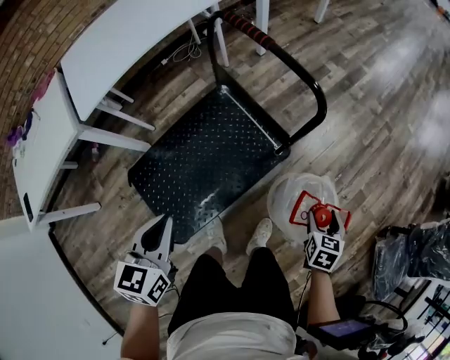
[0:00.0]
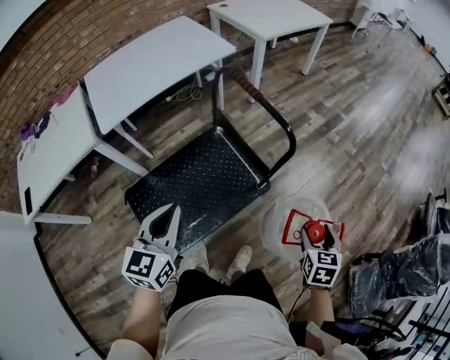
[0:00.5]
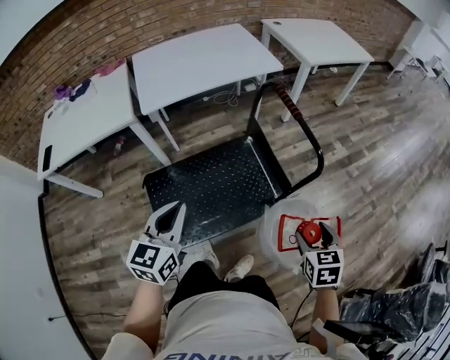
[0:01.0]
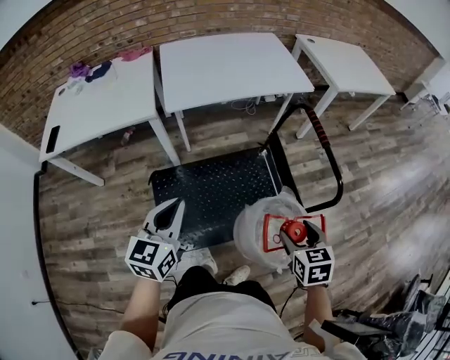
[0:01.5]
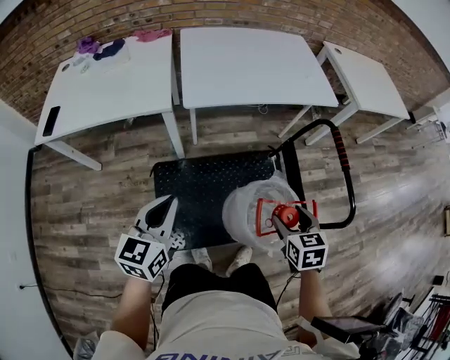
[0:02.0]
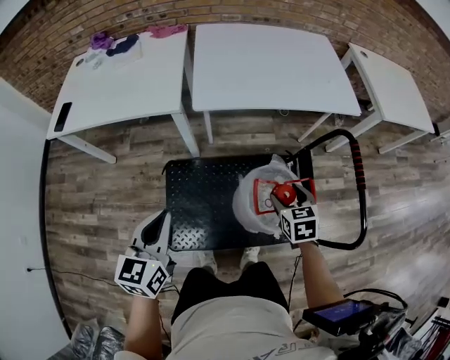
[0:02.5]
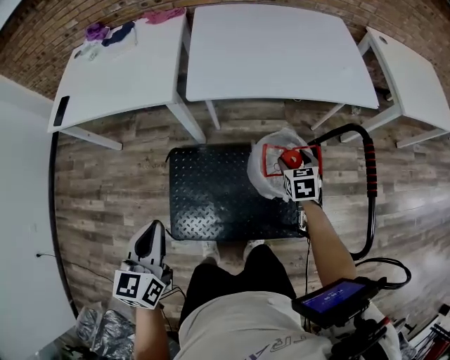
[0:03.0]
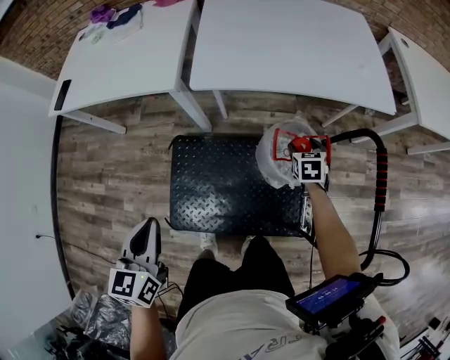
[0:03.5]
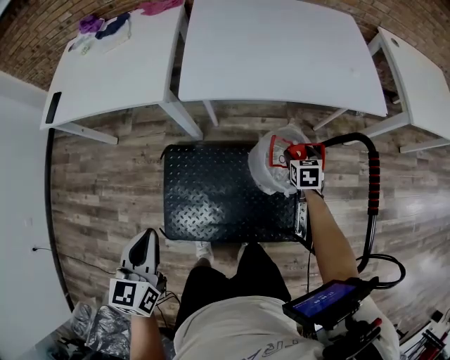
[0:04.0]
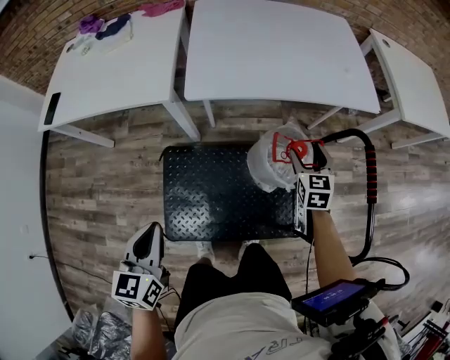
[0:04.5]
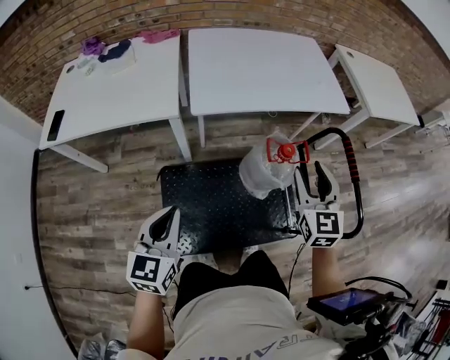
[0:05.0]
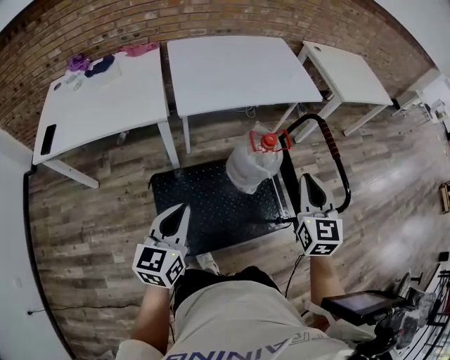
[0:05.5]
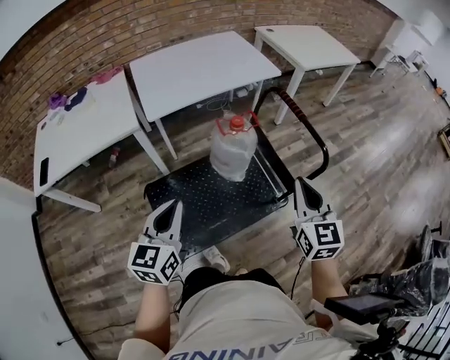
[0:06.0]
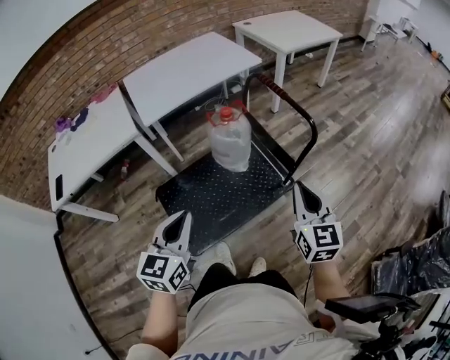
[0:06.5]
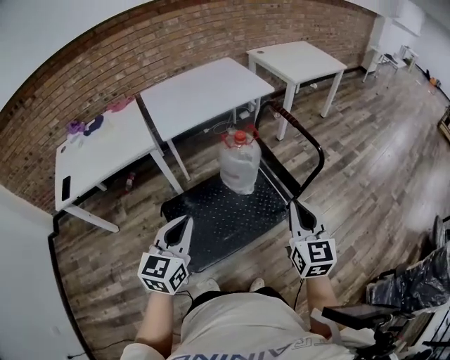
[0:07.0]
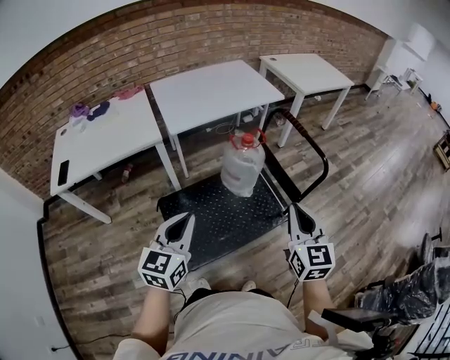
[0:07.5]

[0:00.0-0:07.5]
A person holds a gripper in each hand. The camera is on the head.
0:00.0 to 0:02.0: The right gripper changes place by roughly 40 cm, and swivels about 50 degrees; the left gripper ends up roughly 25 cm from where it was, and swivels roughly 30 degrees.
0:02.0 to 0:04.0: The right gripper is displaced forward and downward by some 40 cm, while the left gripper shifts about 5 cm downward, and turns by about 30 degrees.
0:04.0 to 0:05.5: The left gripper goes some 5 cm upward, and rotates some 30 degrees. The right gripper travels upward and backward by approximately 50 cm, points its fingers roughly 40 degrees further upward, and closes up.
0:05.5 to 0:07.5: The left gripper heads backward, upward and to the right, covering approximately 15 cm. Meanwhile the right gripper is displaced backward by roughly 25 cm.

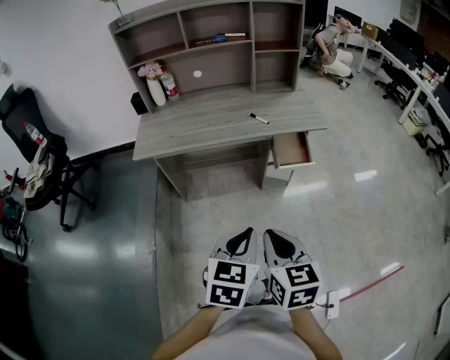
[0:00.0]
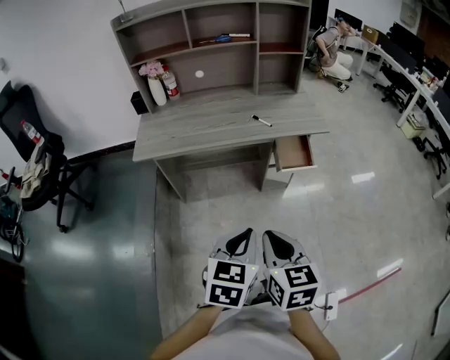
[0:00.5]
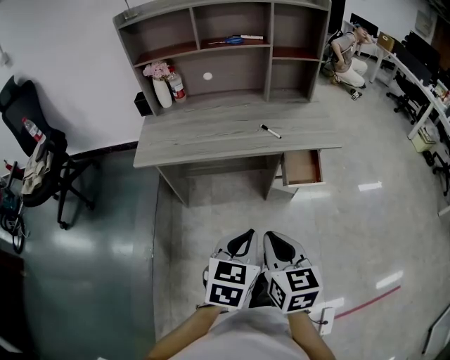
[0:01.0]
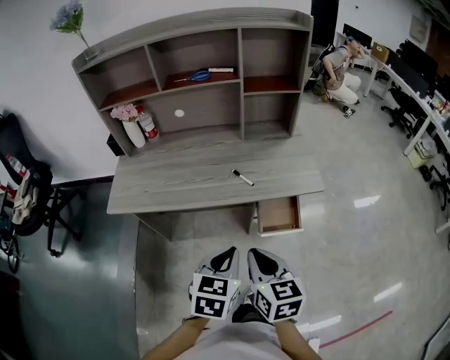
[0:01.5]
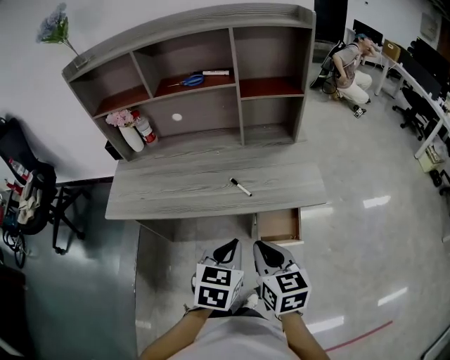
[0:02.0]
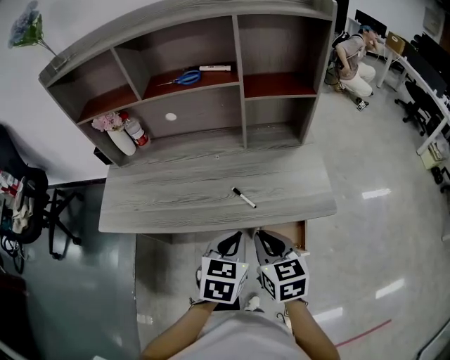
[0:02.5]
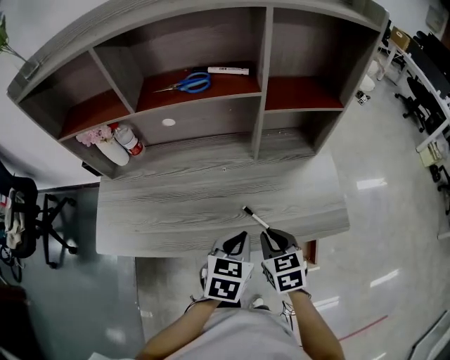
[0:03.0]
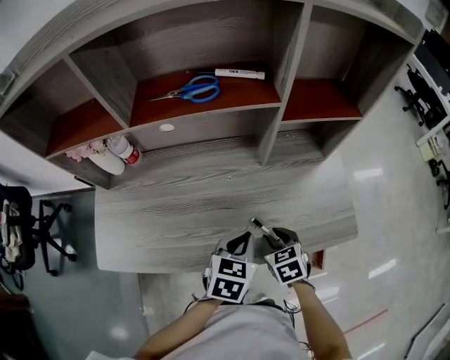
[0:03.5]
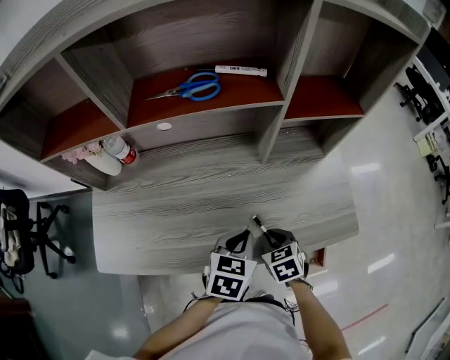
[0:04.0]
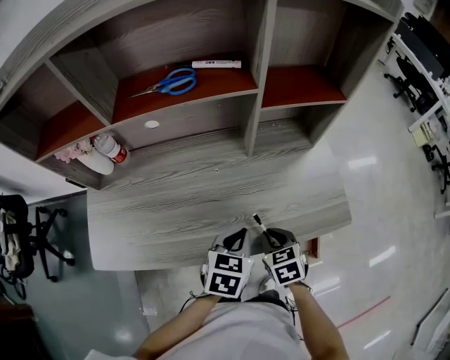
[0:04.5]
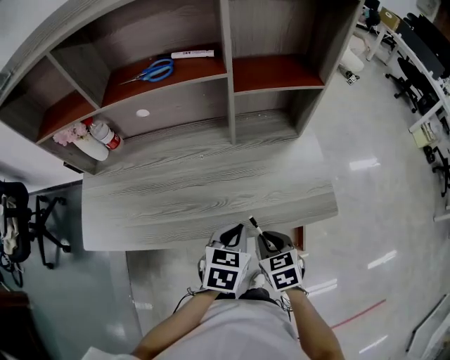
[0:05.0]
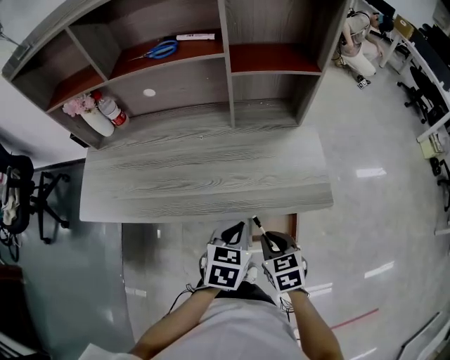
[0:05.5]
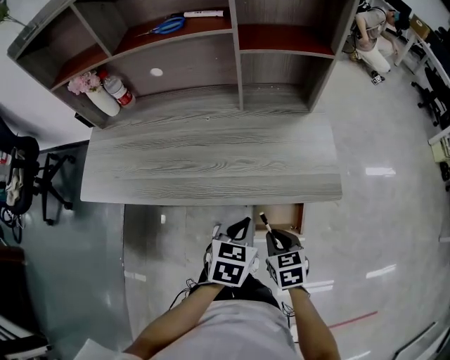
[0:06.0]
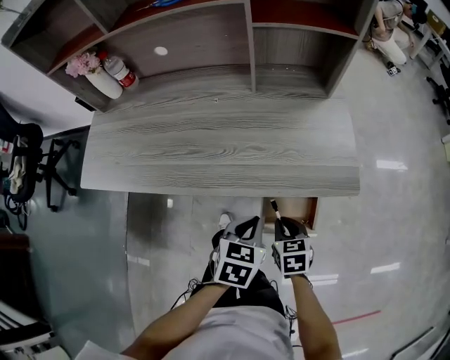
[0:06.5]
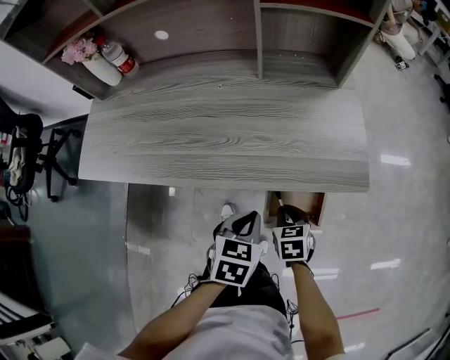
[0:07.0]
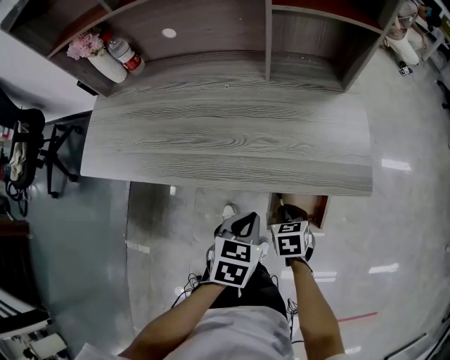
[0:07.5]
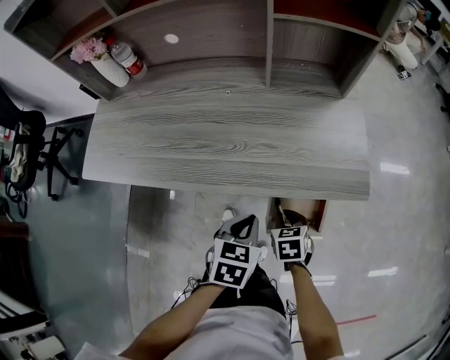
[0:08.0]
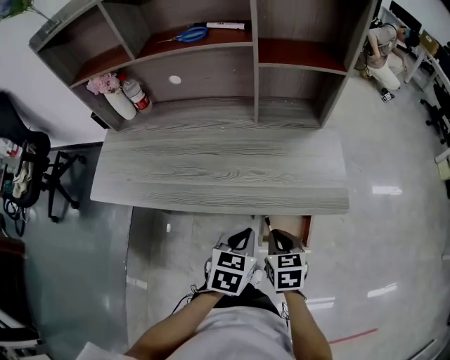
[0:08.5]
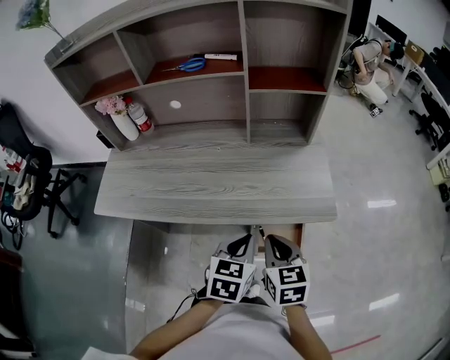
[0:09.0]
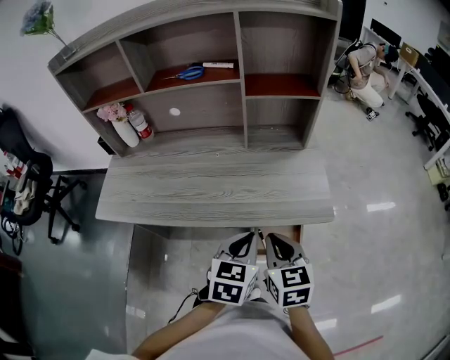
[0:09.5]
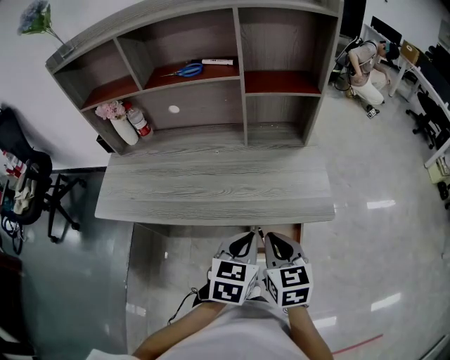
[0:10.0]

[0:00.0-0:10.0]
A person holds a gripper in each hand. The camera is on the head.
0:00.0 to 0:02.0: The two grippers go roughly 35 cm forward.
0:02.0 to 0:04.0: The right gripper heads forward and downward, covering some 30 cm, and tilts its fingers some 30 degrees downward. Meanwhile the left gripper is displaced forward by approximately 25 cm.
0:04.0 to 0:06.0: Both grippers travel together backward and to the right, some 20 cm.
0:06.0 to 0:08.0: The right gripper goes approximately 10 cm downward, while the left gripper shifts about 5 cm downward.
0:08.0 to 0:10.0: The left gripper heads upward, covering approximately 15 cm, while the right gripper goes approximately 25 cm upward, and tips its fingers upward by about 30 degrees.

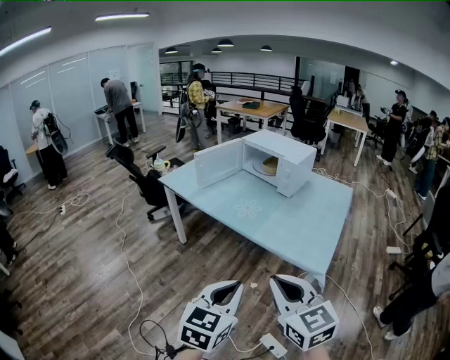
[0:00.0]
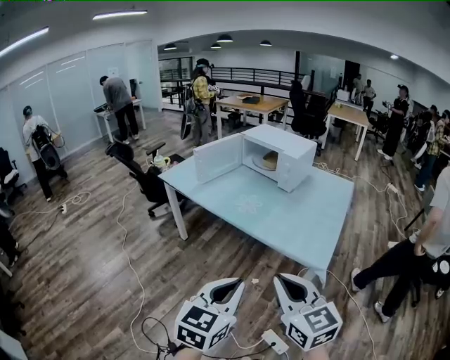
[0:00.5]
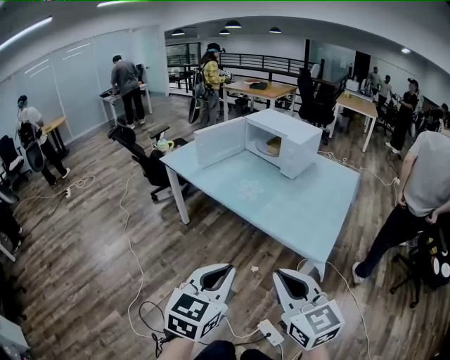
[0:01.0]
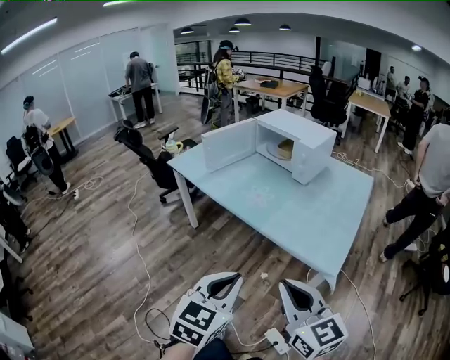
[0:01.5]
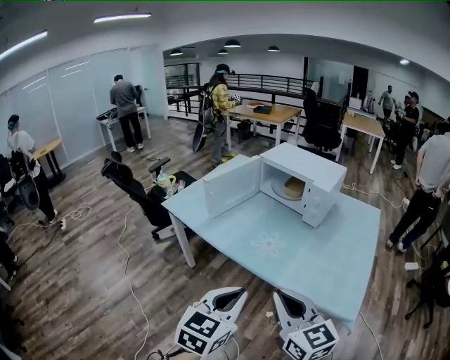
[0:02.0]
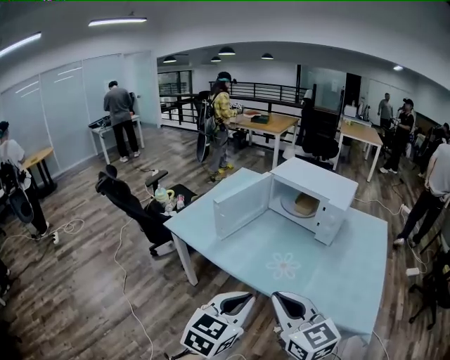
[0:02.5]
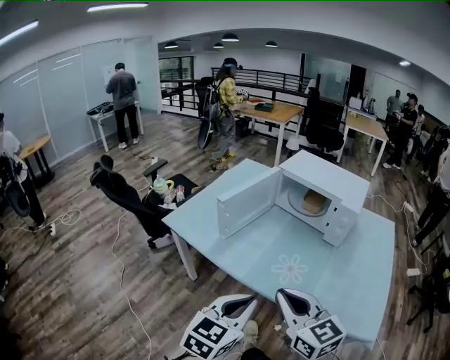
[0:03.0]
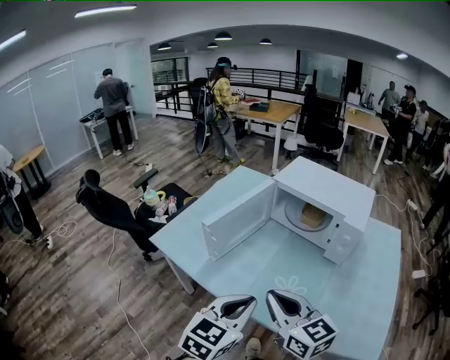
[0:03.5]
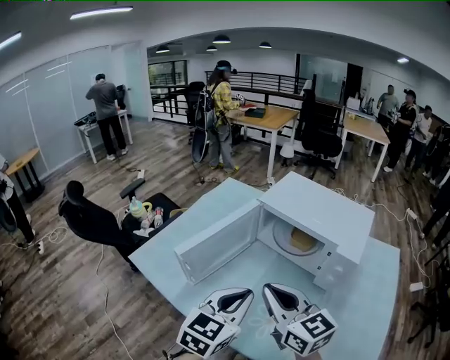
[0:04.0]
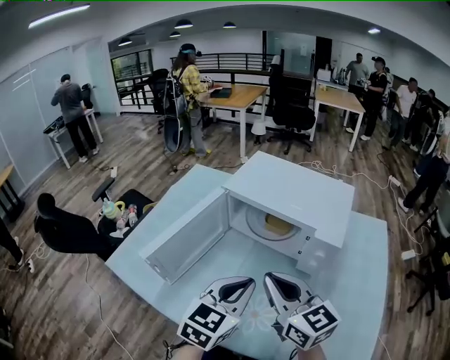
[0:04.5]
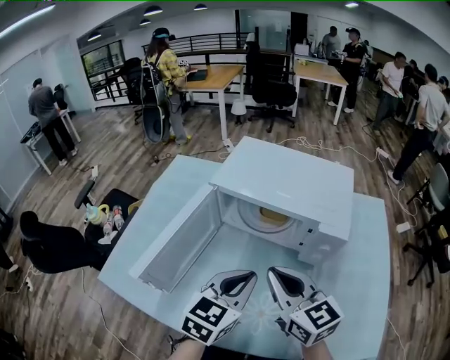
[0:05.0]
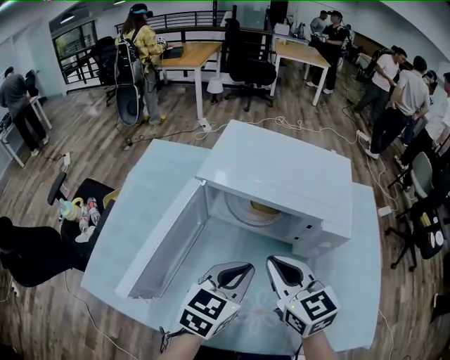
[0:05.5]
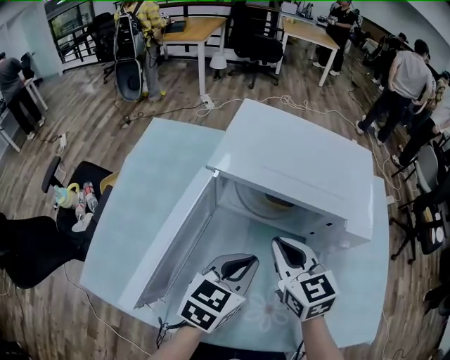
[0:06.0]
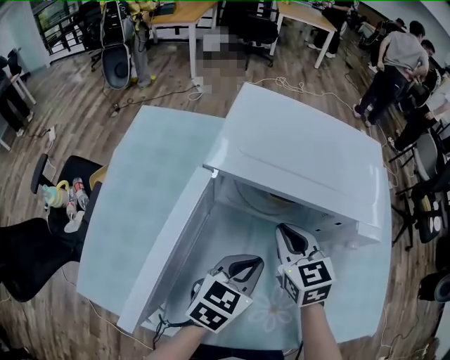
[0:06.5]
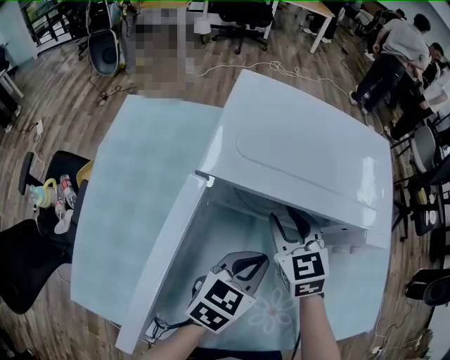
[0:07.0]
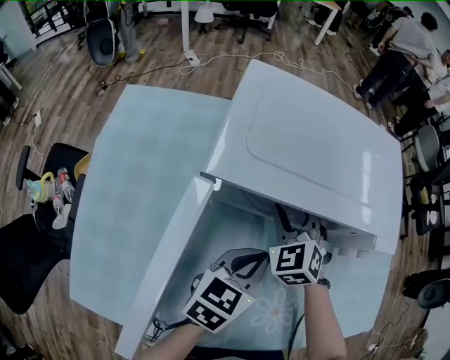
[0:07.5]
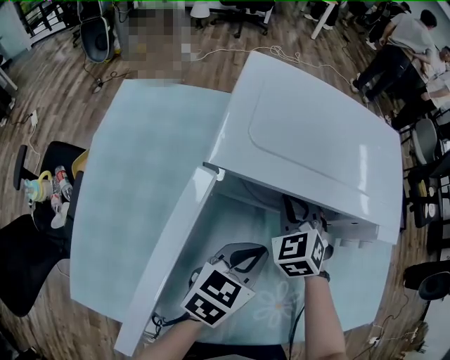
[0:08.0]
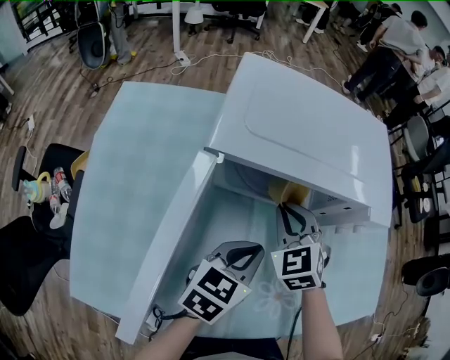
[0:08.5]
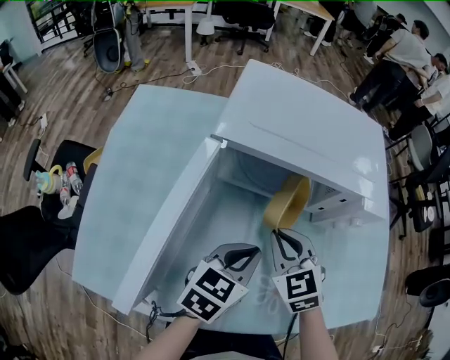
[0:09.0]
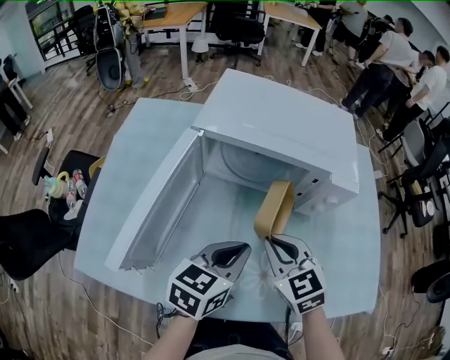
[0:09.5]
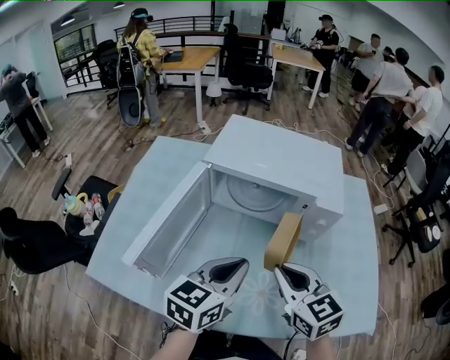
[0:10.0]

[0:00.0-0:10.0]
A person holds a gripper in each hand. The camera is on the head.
0:00.0 to 0:02.0: Both grippers move forward, roughly 25 cm.
0:02.0 to 0:04.0: Both grippers move forward, approximately 40 cm.
0:04.0 to 0:06.0: The right gripper changes place by approximately 25 cm, and swivels roughly 30 degrees. Meanwhile the left gripper moves about 20 cm, and rotates roughly 30 degrees.
0:06.0 to 0:08.0: The left gripper moves downward, approximately 5 cm. The right gripper heads forward and downward, covering some 15 cm, changes its angle by roughly 40 degrees, and opens and closes again.
0:08.0 to 0:10.0: The left gripper travels upward and backward by some 20 cm. The right gripper travels backward, upward and to the right by some 30 cm, and turns by roughly 40 degrees.
